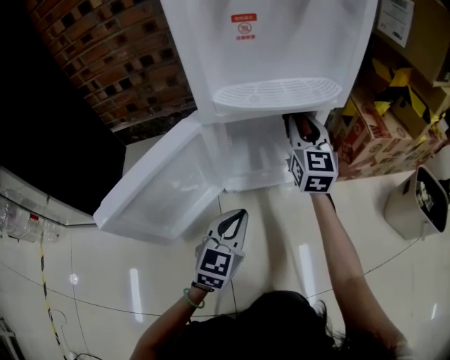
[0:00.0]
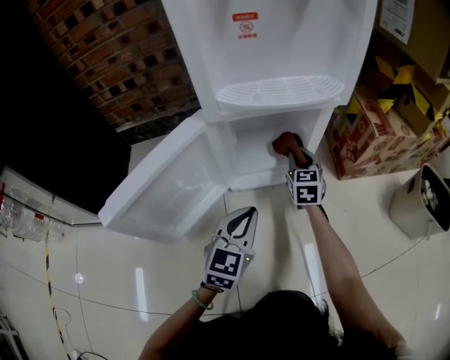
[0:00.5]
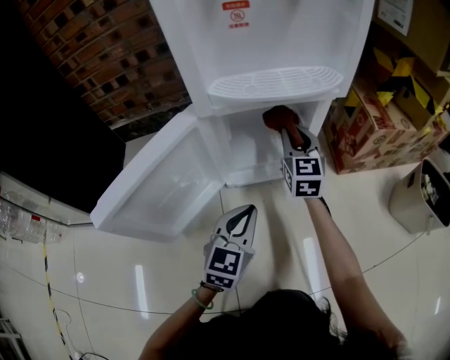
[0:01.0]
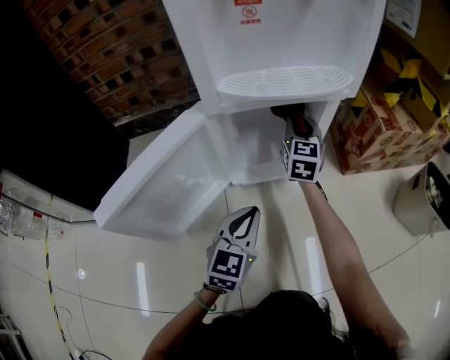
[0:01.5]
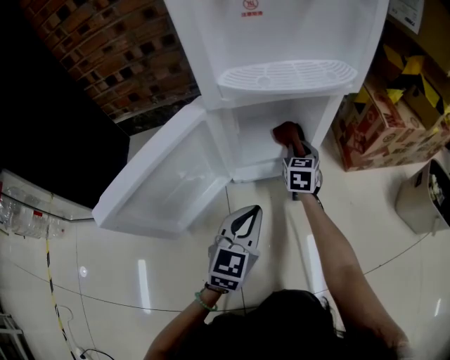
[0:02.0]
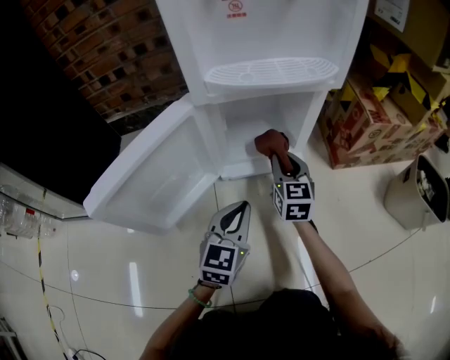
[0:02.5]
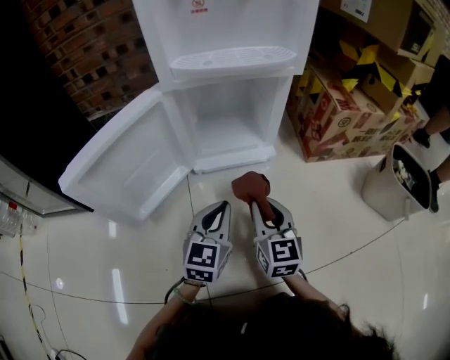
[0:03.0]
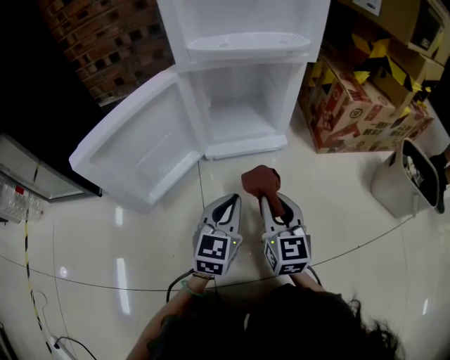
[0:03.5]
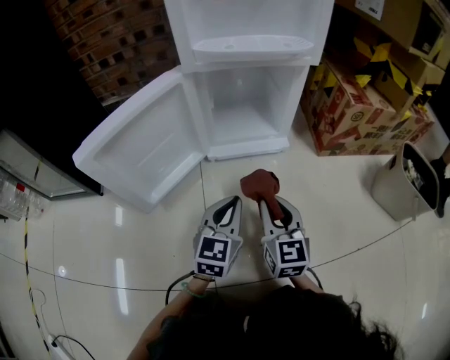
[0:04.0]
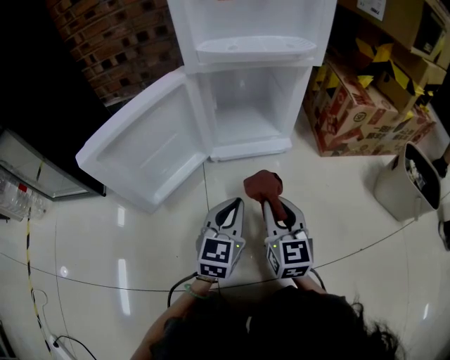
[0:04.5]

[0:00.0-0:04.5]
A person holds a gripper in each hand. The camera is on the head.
0:00.0 to 0:02.0: The right gripper swings up and down, roughly 20 cm each way, with 2 reversals, and rotates approximately 30 degrees.
0:02.0 to 0:04.5: The left gripper is displaced backward by approximately 5 cm. Meanwhile the right gripper heads backward, covering roughly 30 cm, and changes its angle by roughly 20 degrees.

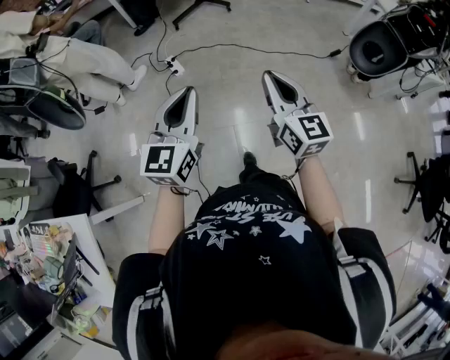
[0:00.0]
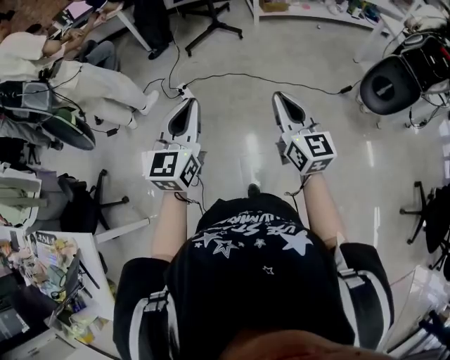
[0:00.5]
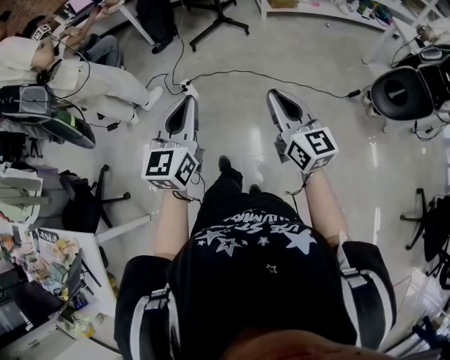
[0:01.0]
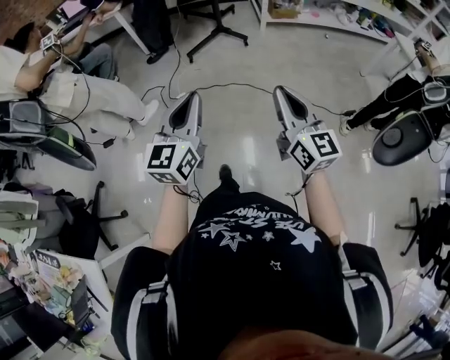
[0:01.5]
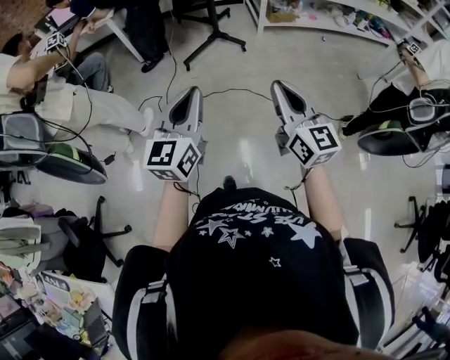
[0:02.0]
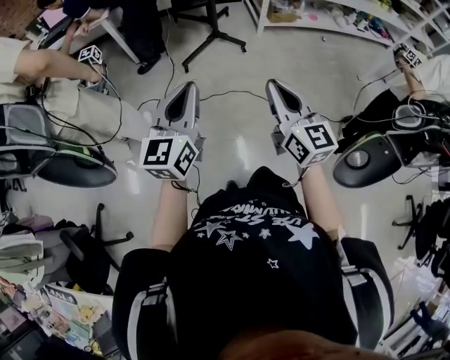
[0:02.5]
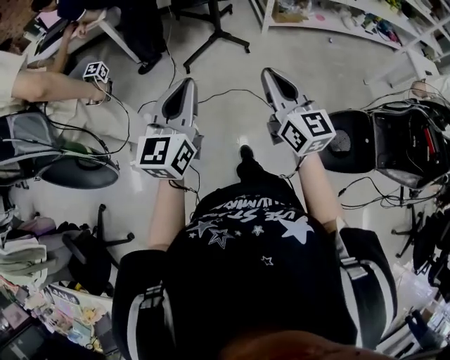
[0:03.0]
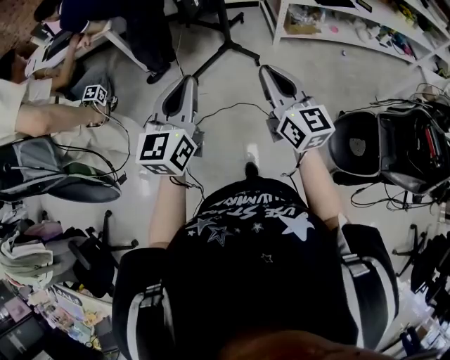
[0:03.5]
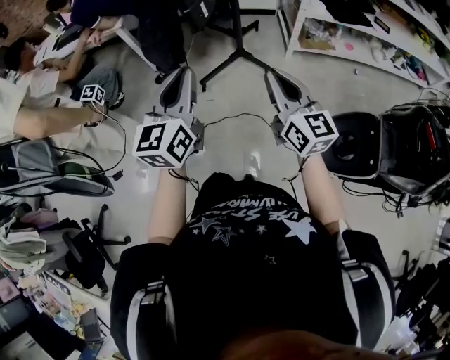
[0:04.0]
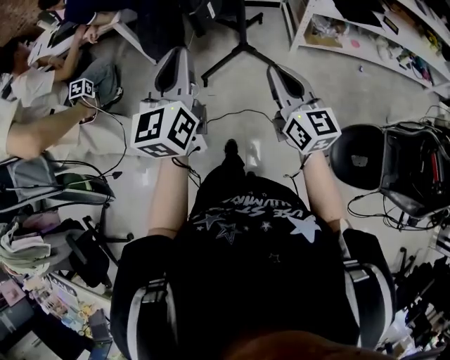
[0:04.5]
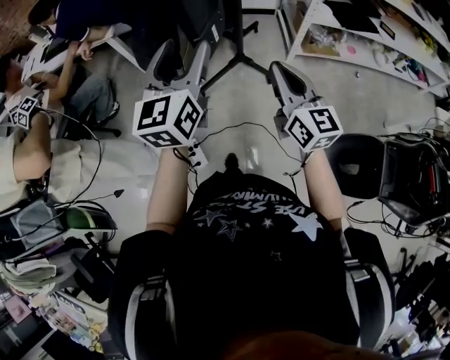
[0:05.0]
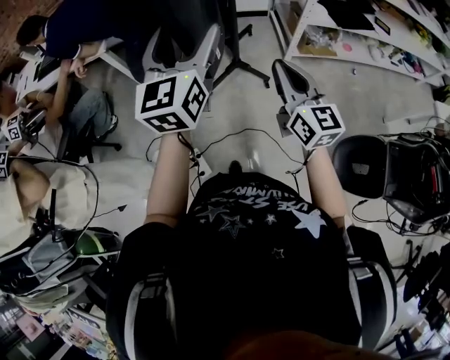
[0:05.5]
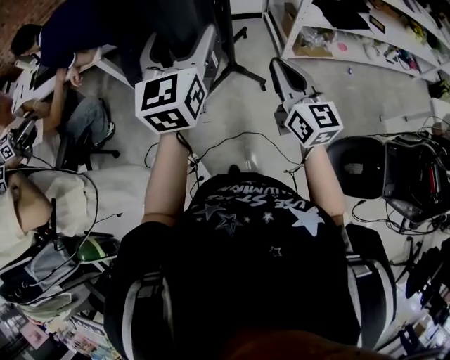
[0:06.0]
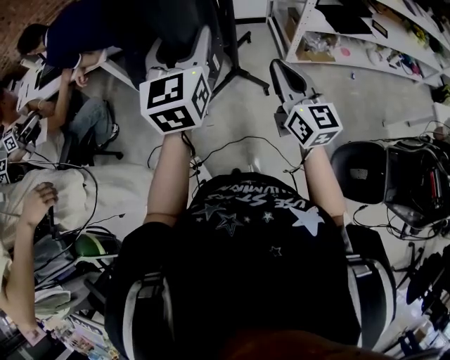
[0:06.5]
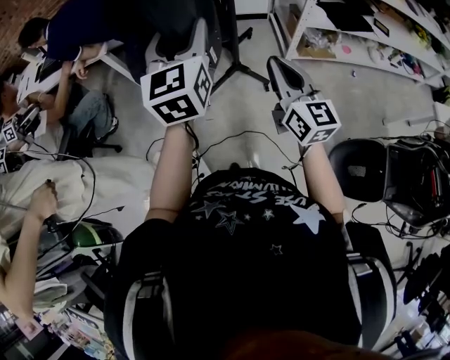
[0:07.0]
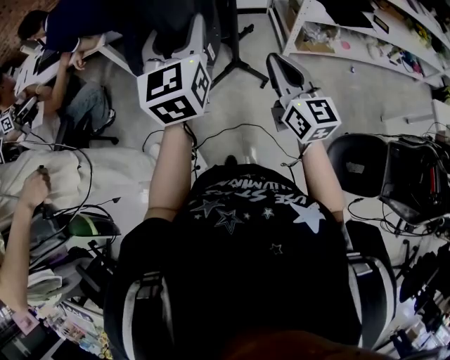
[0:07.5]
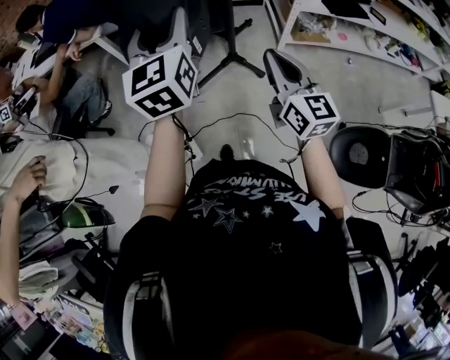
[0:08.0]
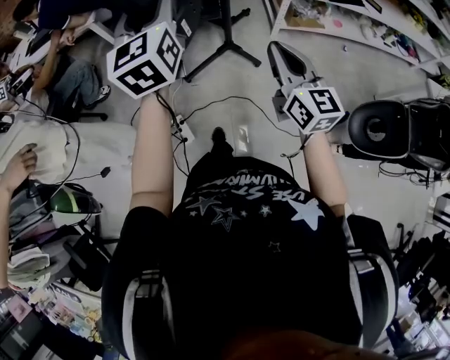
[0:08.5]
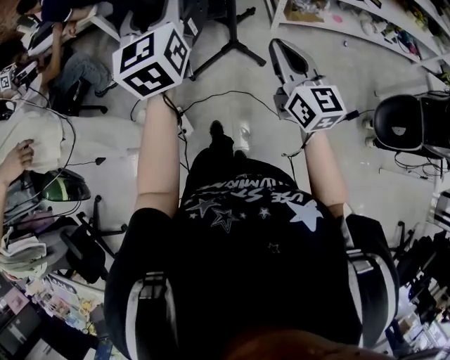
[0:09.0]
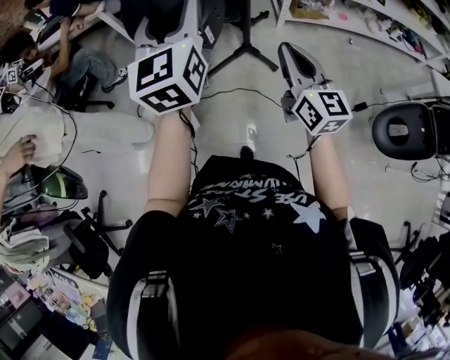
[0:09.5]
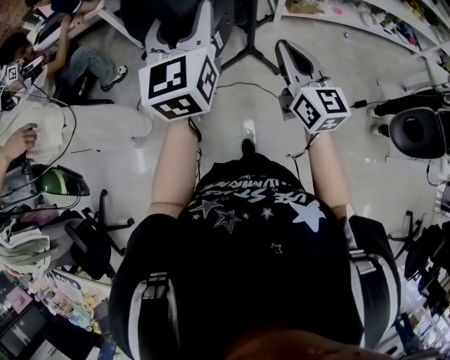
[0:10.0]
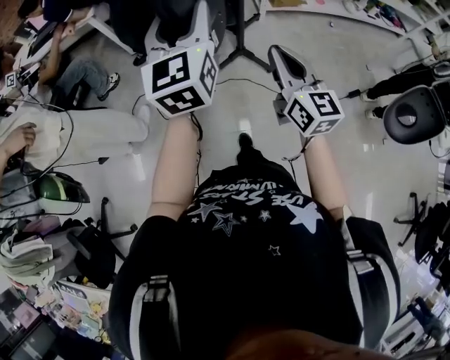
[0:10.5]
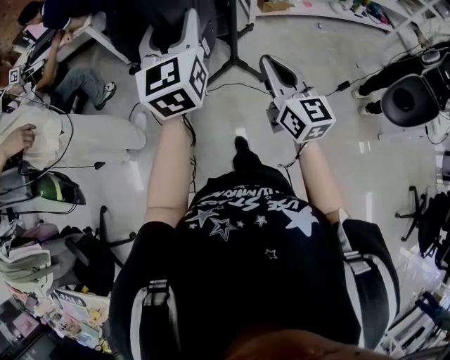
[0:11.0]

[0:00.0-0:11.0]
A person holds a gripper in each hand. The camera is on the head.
0:00.0 to 0:02.0: The grippers both shift forward by about 35 cm.
0:02.0 to 0:03.5: The two grippers go about 25 cm forward.
0:03.5 to 0:05.5: The two grippers go some 30 cm forward. The left gripper opens its fingers.
0:05.5 to 0:07.5: The left gripper closes up.
0:07.5 to 0:09.0: The two grippers go approximately 15 cm backward.
0:09.0 to 0:11.0: Both grippers move backward, roughly 20 cm.

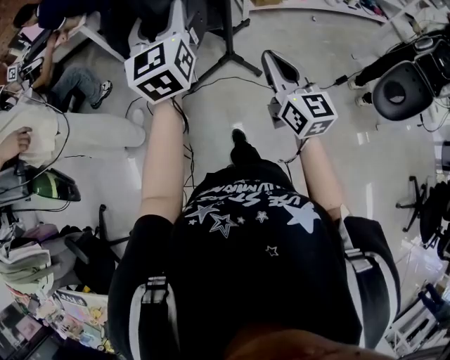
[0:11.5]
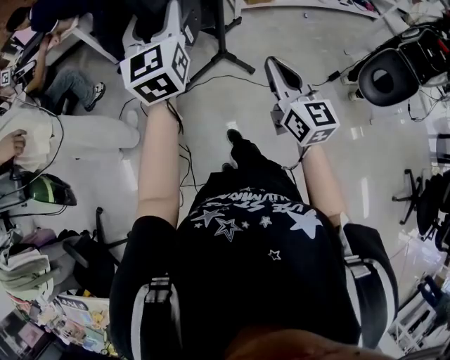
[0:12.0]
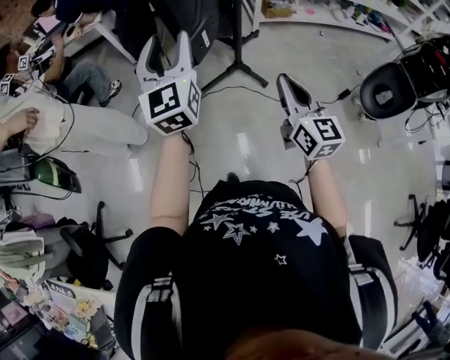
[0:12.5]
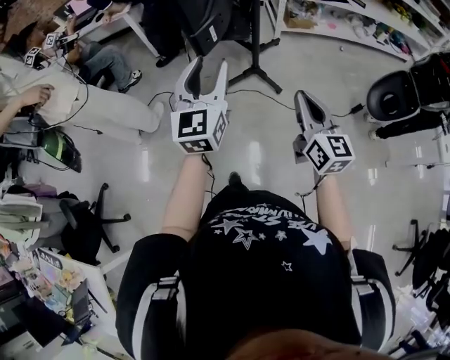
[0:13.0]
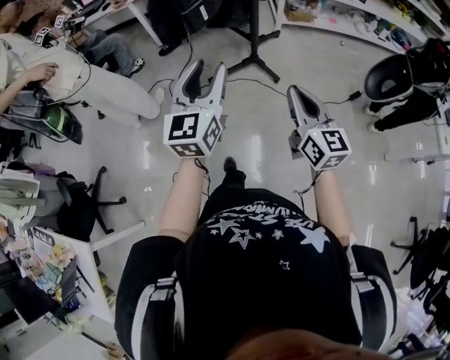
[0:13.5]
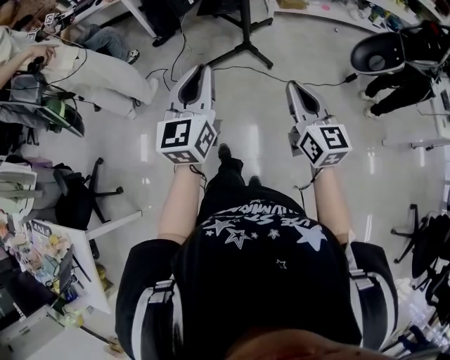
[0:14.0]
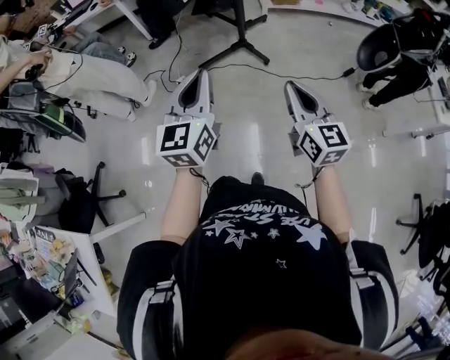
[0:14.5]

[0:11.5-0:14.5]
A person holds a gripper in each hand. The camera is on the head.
0:11.5 to 0:13.0: The left gripper is displaced backward and downward by approximately 15 cm. Meanwhile the right gripper travels backward and to the right by some 10 cm.
0:13.0 to 0:14.5: The two grippers go some 20 cm backward. The left gripper closes its fingers.

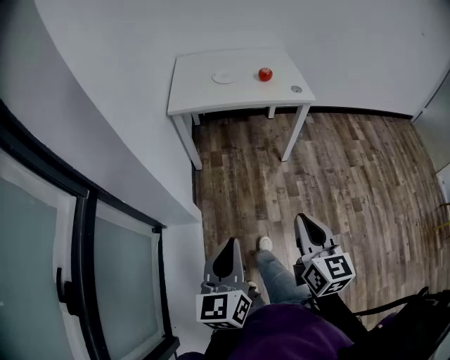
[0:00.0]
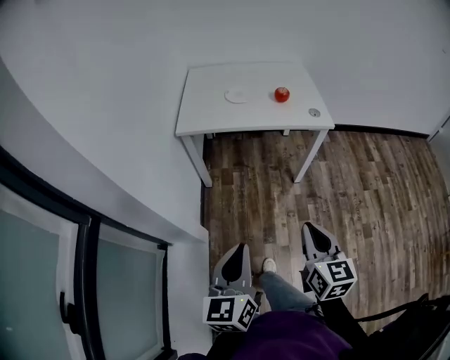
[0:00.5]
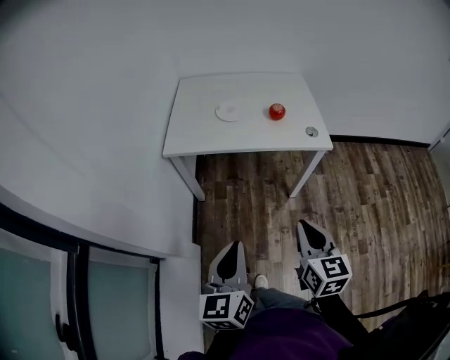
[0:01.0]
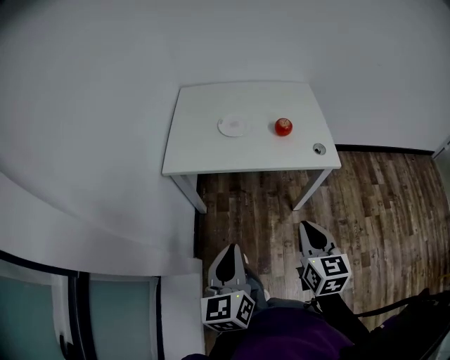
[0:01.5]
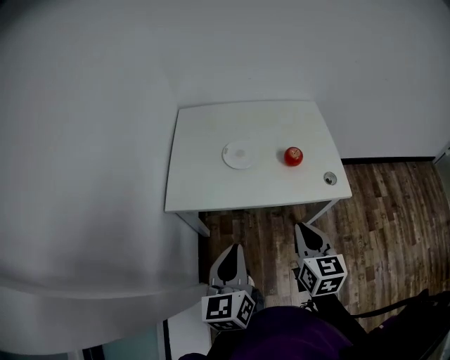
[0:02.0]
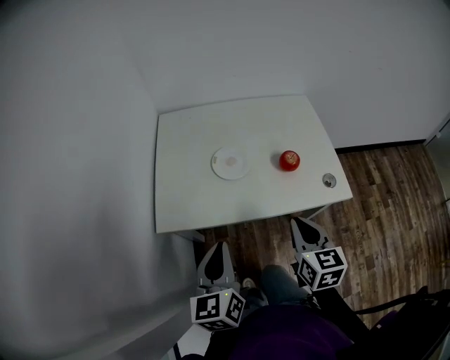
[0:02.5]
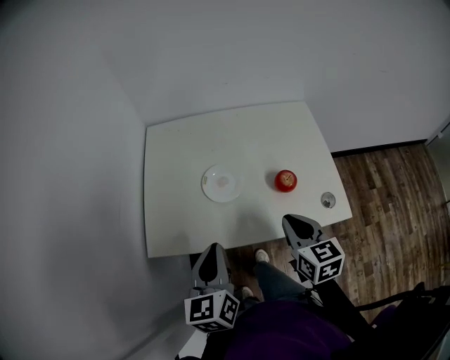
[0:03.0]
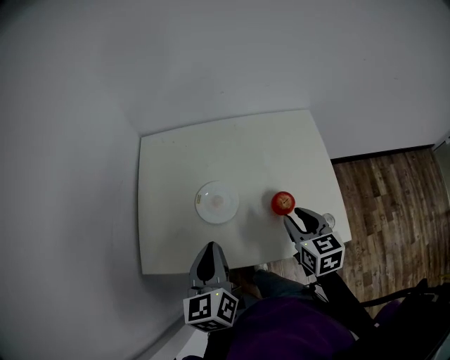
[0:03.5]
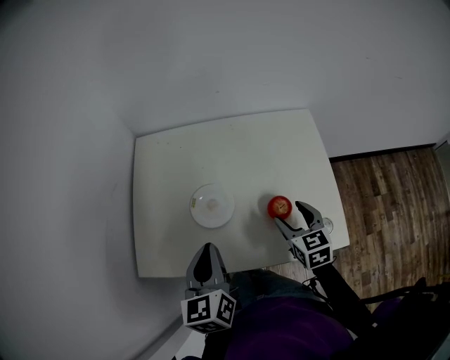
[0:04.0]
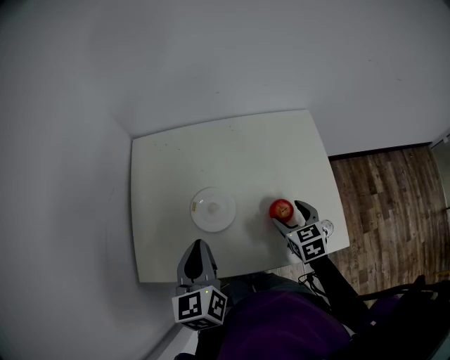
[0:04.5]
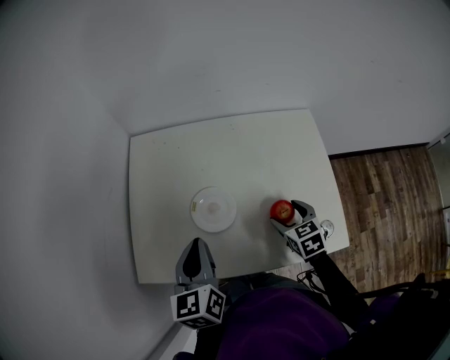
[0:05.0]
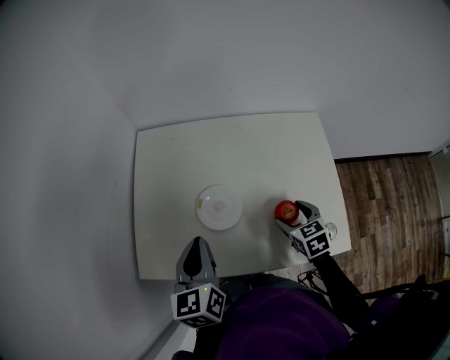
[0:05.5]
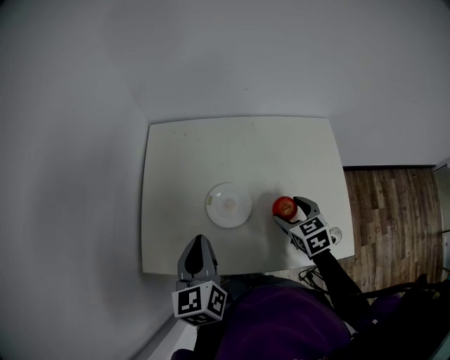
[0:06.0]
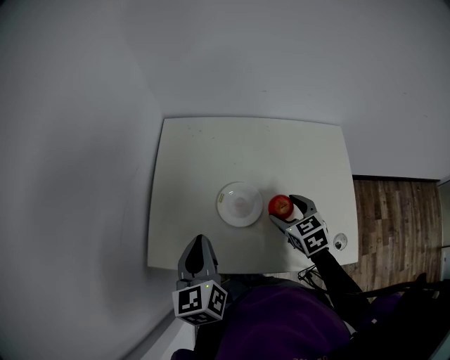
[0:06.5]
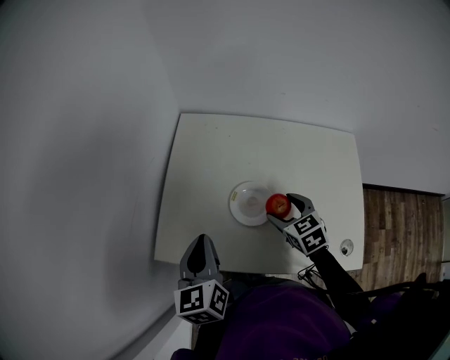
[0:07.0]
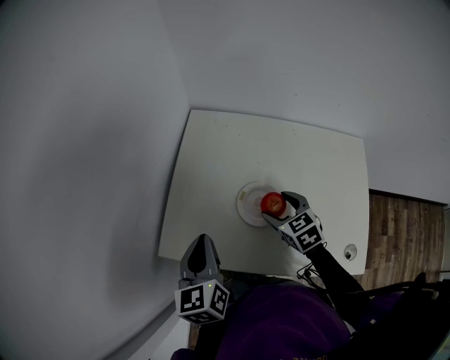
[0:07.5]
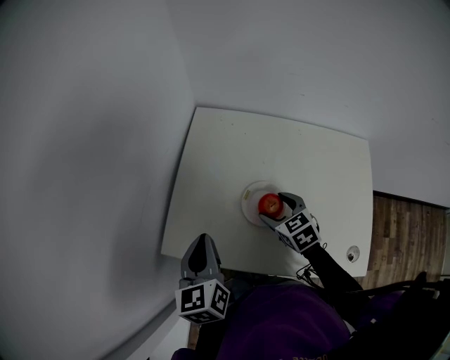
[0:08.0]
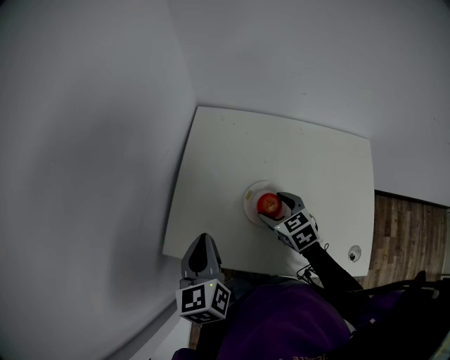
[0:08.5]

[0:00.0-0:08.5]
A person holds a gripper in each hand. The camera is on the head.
0:00.0 to 0:02.0: The two grippers travel together, forward, approximately 50 cm.
0:02.0 to 0:04.0: Both grippers travel together forward, roughly 30 cm. The right gripper opens its fingers.
0:04.0 to 0:06.5: The left gripper is displaced to the left by some 10 cm. The right gripper moves to the left and forward, approximately 10 cm, and rotates approximately 20 degrees.
0:06.5 to 0:08.5: The left gripper travels to the left by some 5 cm. Meanwhile the right gripper travels to the left and forward by roughly 10 cm.
